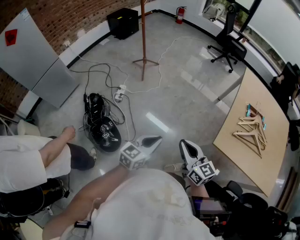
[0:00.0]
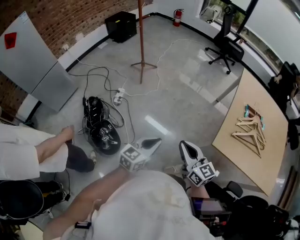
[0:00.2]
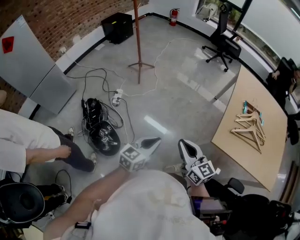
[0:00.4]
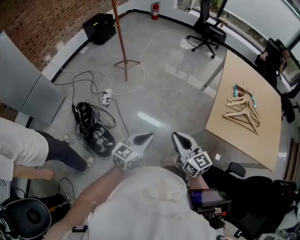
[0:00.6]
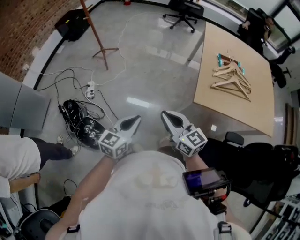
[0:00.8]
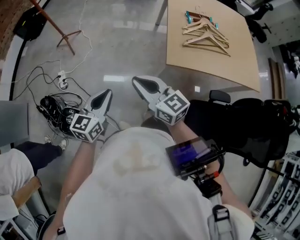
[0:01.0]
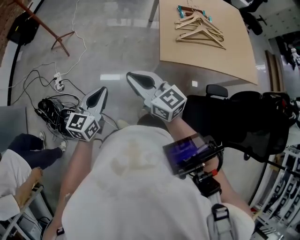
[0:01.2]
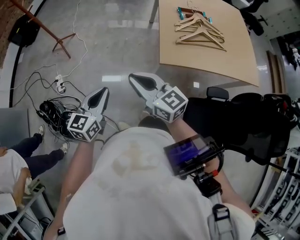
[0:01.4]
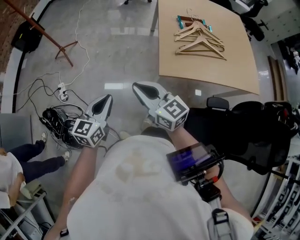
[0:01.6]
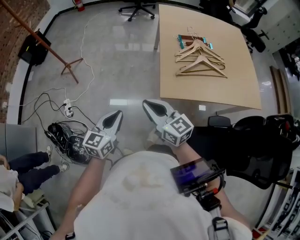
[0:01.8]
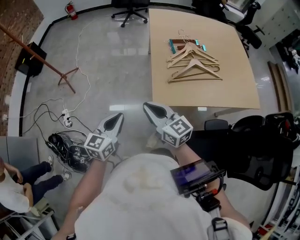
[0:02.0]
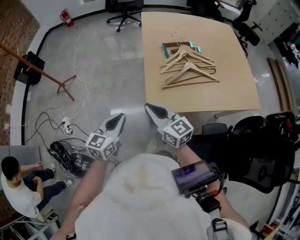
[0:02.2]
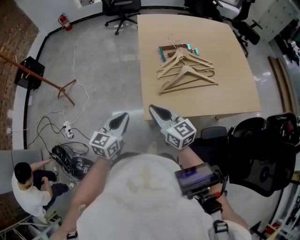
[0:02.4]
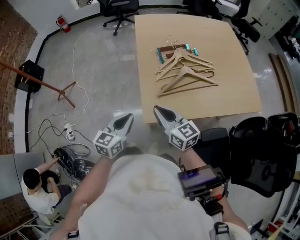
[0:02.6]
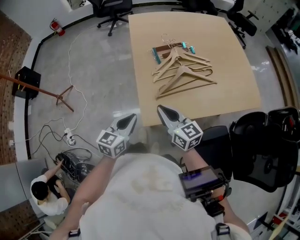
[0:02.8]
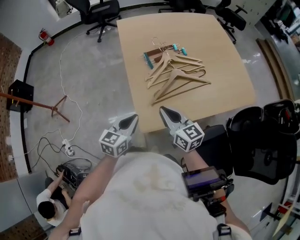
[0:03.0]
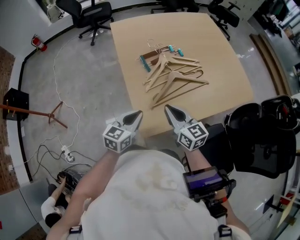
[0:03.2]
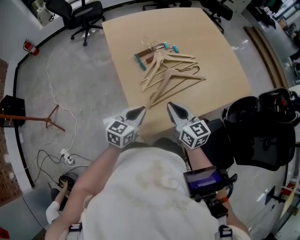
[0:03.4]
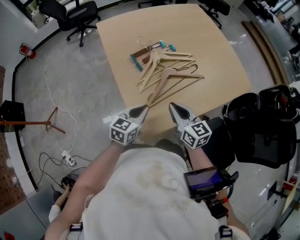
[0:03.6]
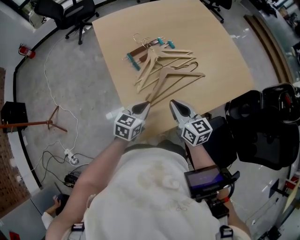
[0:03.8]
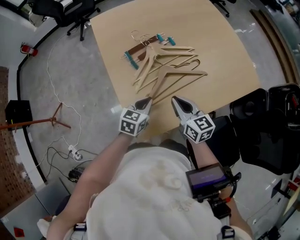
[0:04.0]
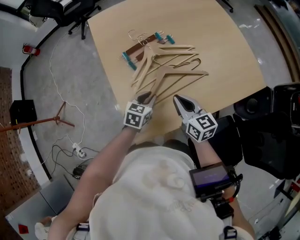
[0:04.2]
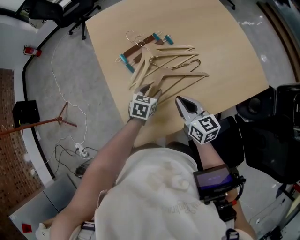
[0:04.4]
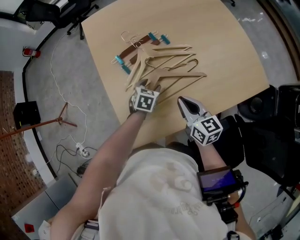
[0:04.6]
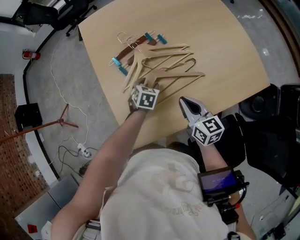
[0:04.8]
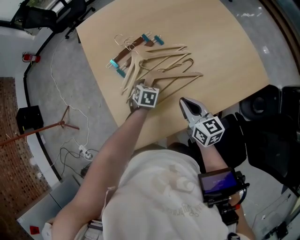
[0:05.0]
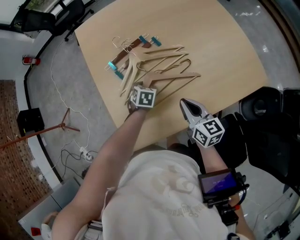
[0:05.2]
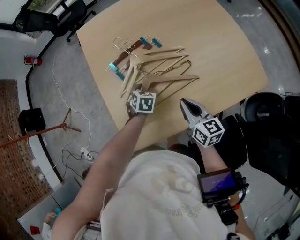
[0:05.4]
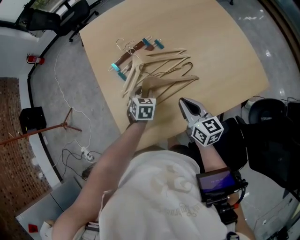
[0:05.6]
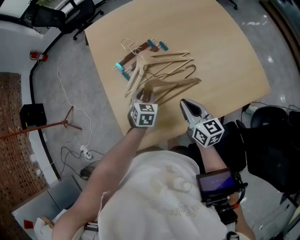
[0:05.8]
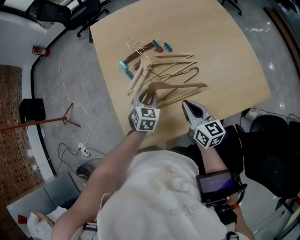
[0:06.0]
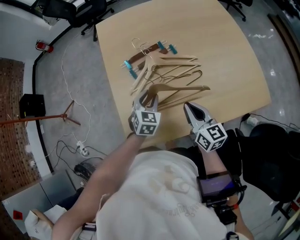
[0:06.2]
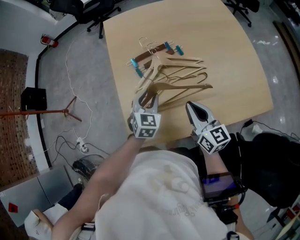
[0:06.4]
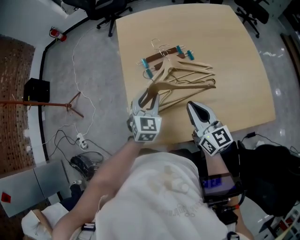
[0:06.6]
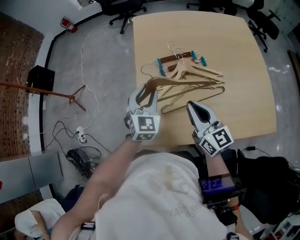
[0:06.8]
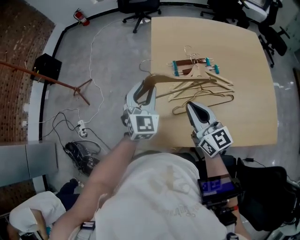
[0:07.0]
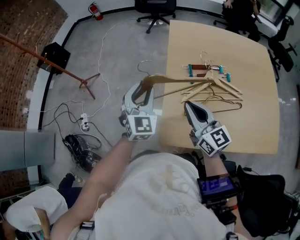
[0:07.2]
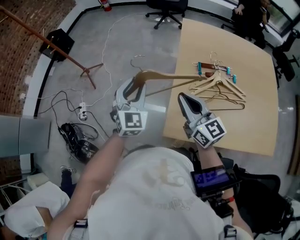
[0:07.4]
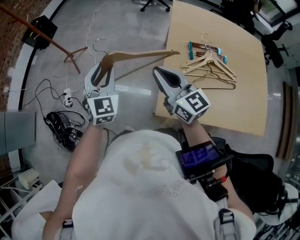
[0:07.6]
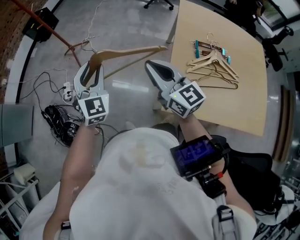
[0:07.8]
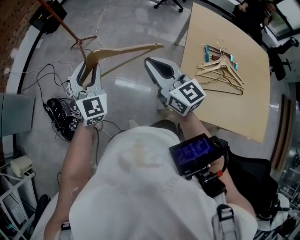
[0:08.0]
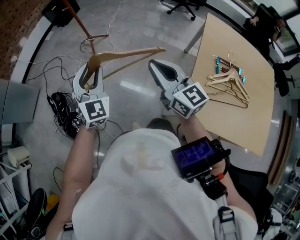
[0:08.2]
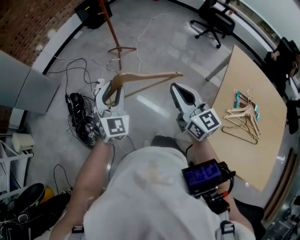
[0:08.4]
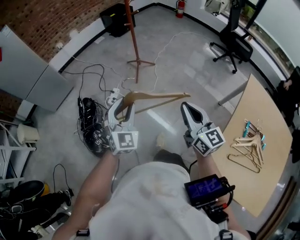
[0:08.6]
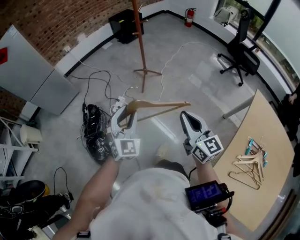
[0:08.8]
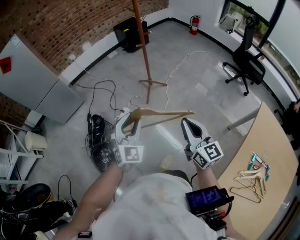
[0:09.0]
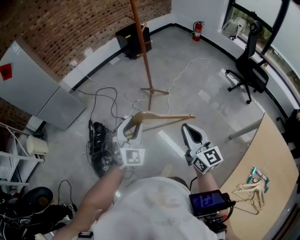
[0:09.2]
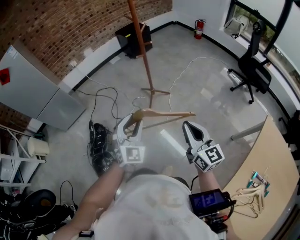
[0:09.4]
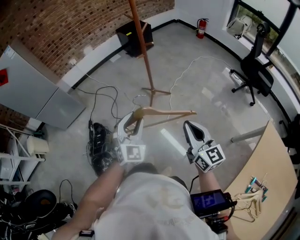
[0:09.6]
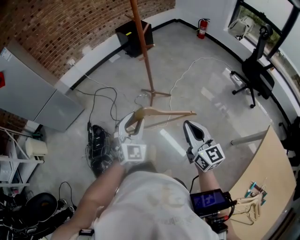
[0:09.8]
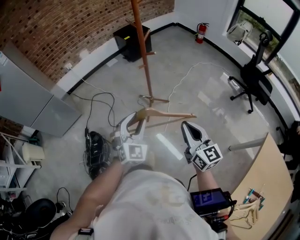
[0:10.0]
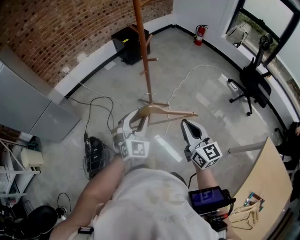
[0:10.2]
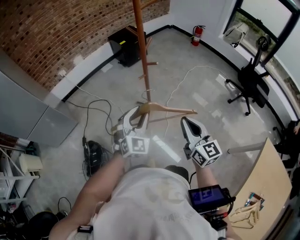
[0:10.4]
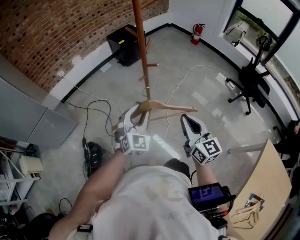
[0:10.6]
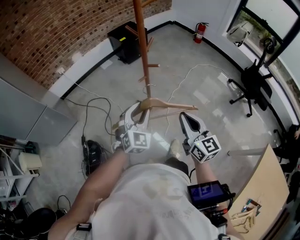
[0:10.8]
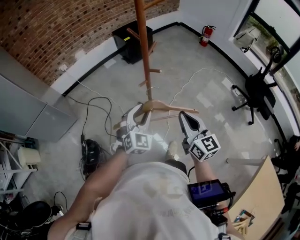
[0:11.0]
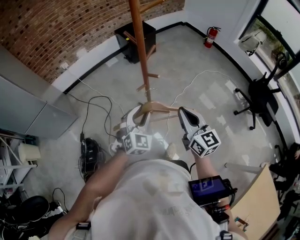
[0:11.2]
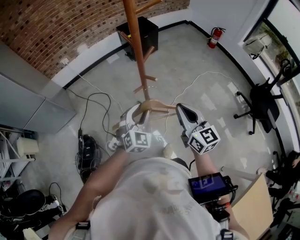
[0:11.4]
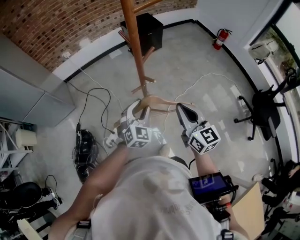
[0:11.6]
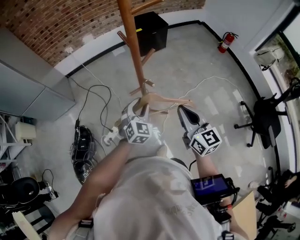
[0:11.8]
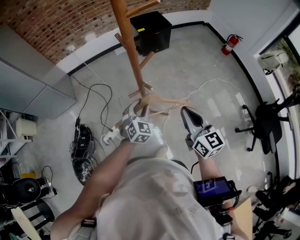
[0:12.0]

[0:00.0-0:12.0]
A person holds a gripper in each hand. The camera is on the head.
0:00.0 to 0:01.6: The two grippers go approximately 10 cm to the right.
0:01.6 to 0:03.0: The left gripper shifts by approximately 35 cm, and swivels some 20 degrees; the right gripper moves roughly 35 cm, and turns by approximately 30 degrees.
0:03.0 to 0:04.4: The right gripper shifts approximately 20 cm to the right, forward and downward; the left gripper goes approximately 30 cm forward, to the right and downward, turns by some 30 degrees, and opens.
0:04.4 to 0:06.0: The right gripper travels to the right by roughly 5 cm. The left gripper swivels some 20 degrees.
0:06.0 to 0:07.6: Both grippers are carried some 50 cm. The left gripper tilts its fingers about 30 degrees upward, while the right gripper changes its angle by about 50 degrees.
0:07.6 to 0:09.0: The left gripper moves roughly 35 cm, and turns by some 30 degrees; the right gripper shifts by approximately 35 cm, and swivels about 20 degrees.
0:09.0 to 0:10.4: Both grippers travel together forward, some 35 cm.
0:10.4 to 0:12.0: The left gripper goes some 30 cm forward, downward and to the right, and rotates about 30 degrees; the right gripper moves forward and to the right, about 30 cm, and rotates some 20 degrees.

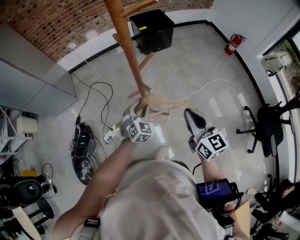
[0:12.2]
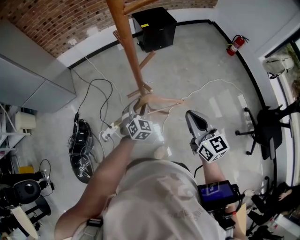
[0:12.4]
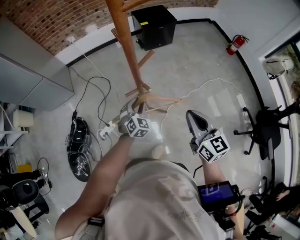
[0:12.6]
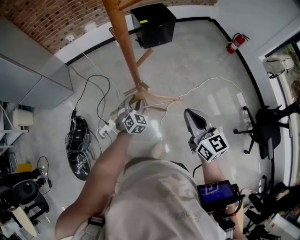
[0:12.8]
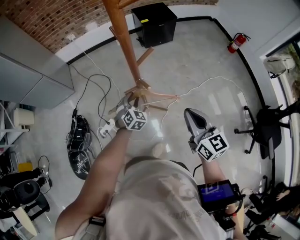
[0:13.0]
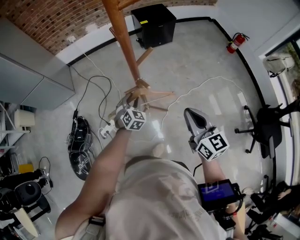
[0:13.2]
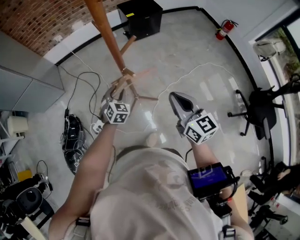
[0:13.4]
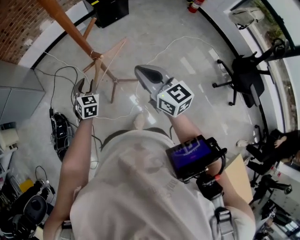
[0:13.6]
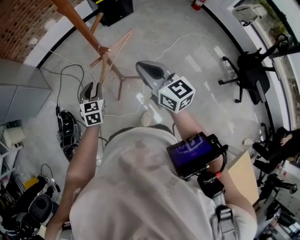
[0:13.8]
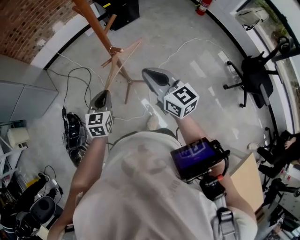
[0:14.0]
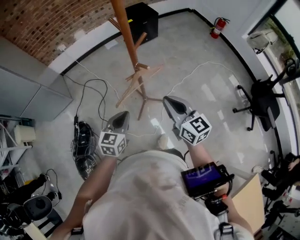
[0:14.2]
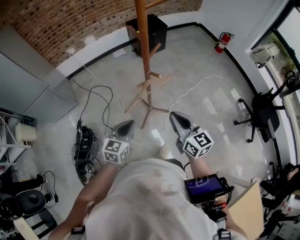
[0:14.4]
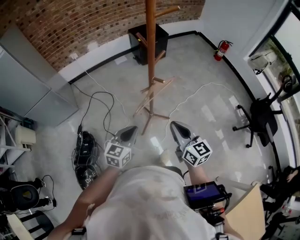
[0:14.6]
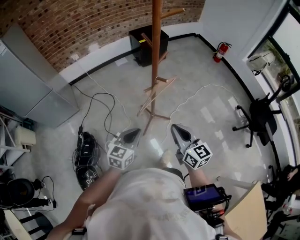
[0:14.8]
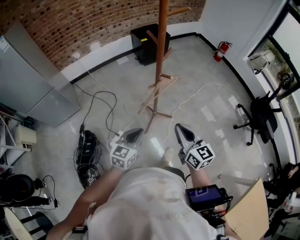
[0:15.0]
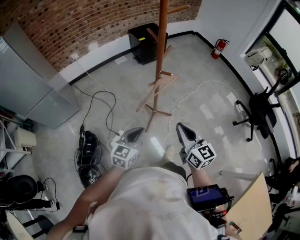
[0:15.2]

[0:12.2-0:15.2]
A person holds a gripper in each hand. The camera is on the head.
0:12.2 to 0:13.8: The left gripper goes some 10 cm to the left, and changes its angle by approximately 20 degrees. The right gripper moves approximately 5 cm.
0:13.8 to 0:15.2: The left gripper is displaced backward and upward by roughly 20 cm, swivels about 30 degrees, and closes. The right gripper travels backward and to the left by about 20 cm.

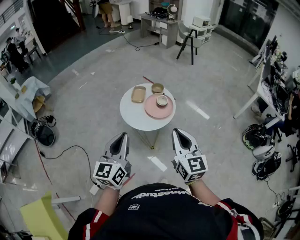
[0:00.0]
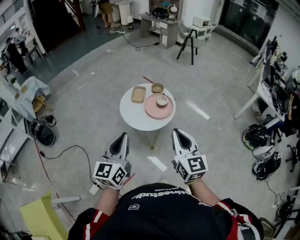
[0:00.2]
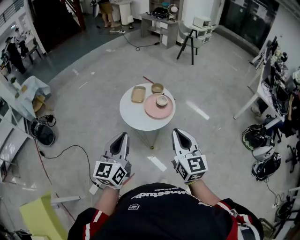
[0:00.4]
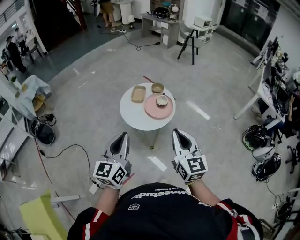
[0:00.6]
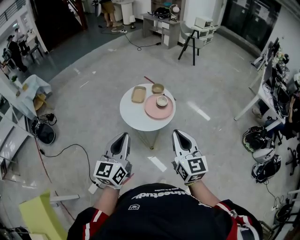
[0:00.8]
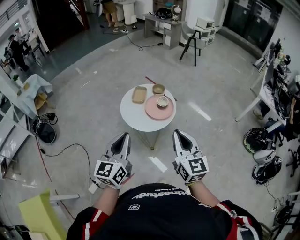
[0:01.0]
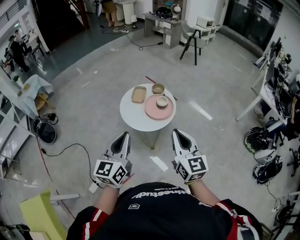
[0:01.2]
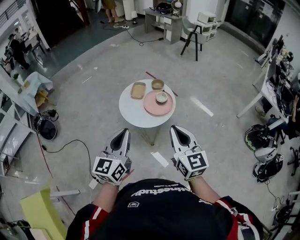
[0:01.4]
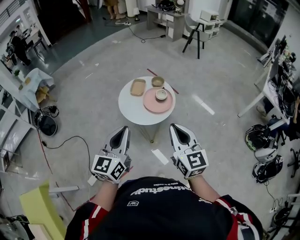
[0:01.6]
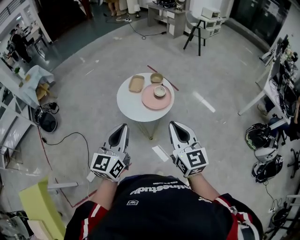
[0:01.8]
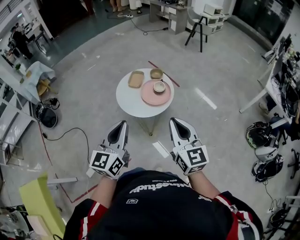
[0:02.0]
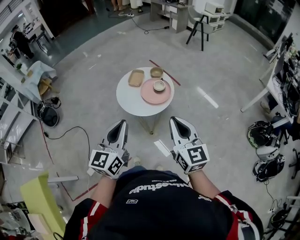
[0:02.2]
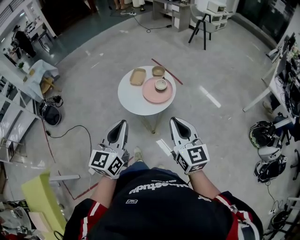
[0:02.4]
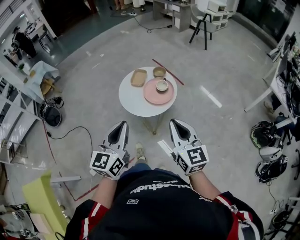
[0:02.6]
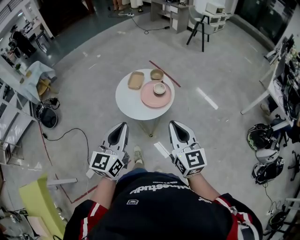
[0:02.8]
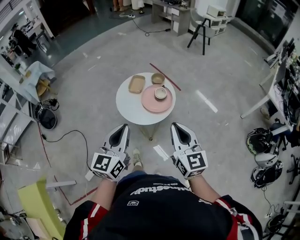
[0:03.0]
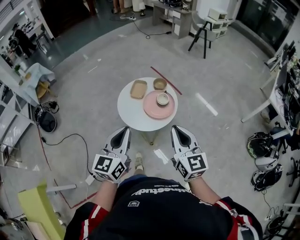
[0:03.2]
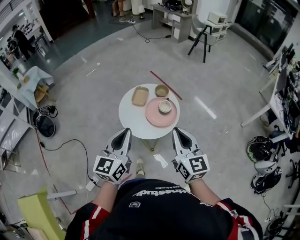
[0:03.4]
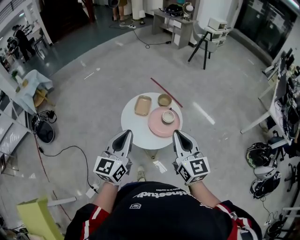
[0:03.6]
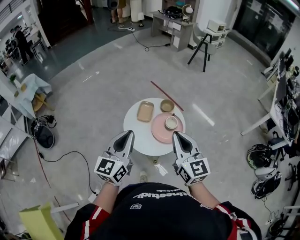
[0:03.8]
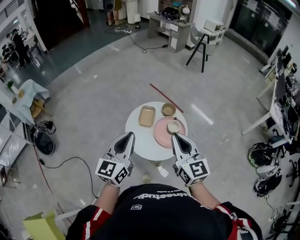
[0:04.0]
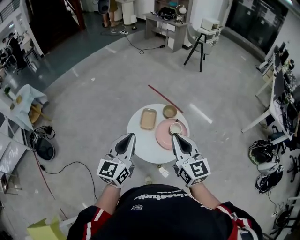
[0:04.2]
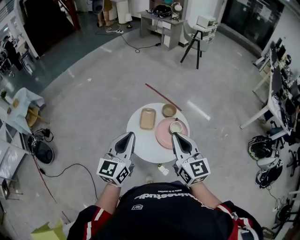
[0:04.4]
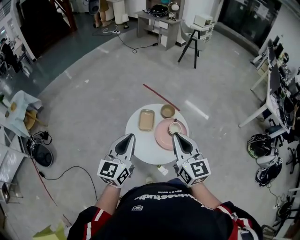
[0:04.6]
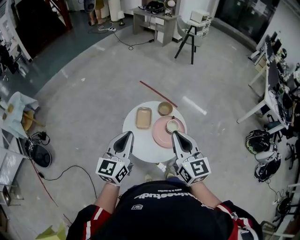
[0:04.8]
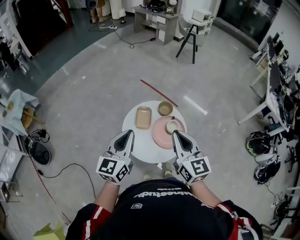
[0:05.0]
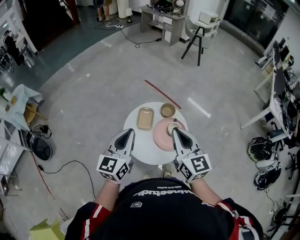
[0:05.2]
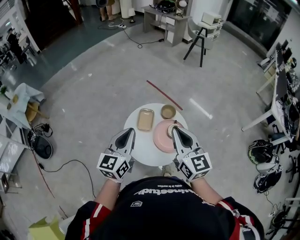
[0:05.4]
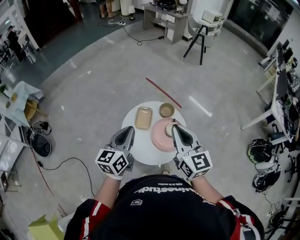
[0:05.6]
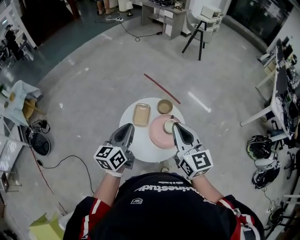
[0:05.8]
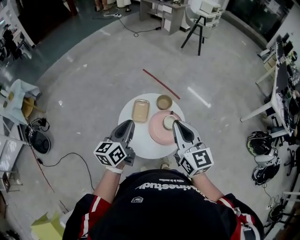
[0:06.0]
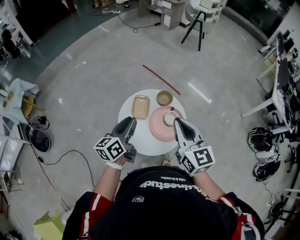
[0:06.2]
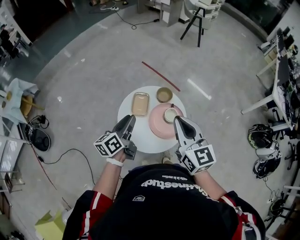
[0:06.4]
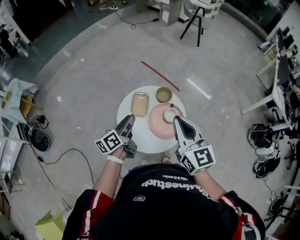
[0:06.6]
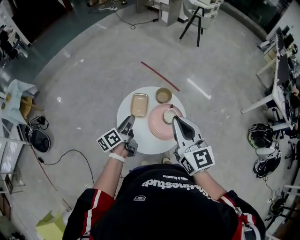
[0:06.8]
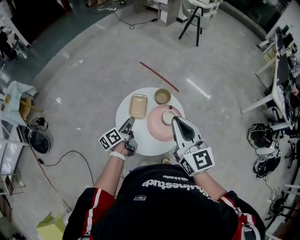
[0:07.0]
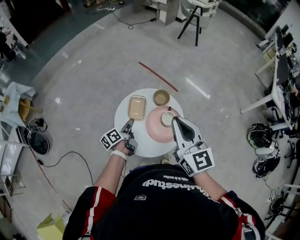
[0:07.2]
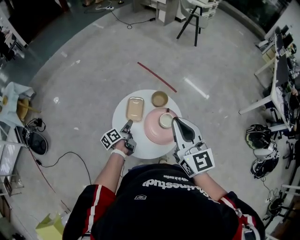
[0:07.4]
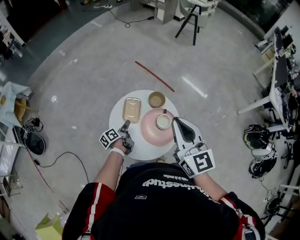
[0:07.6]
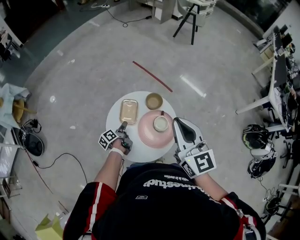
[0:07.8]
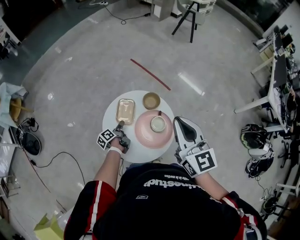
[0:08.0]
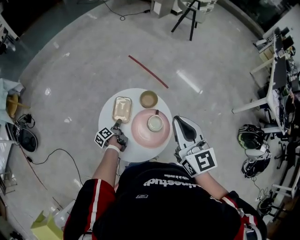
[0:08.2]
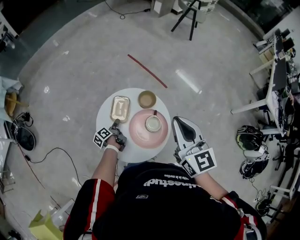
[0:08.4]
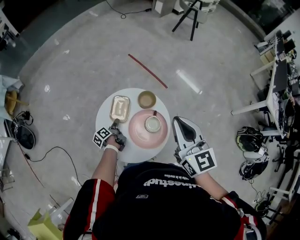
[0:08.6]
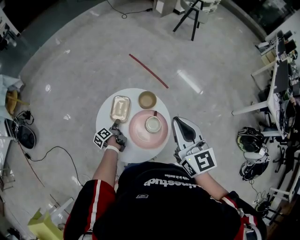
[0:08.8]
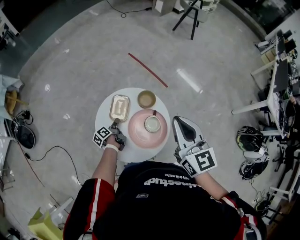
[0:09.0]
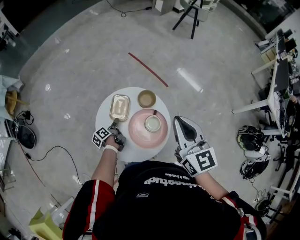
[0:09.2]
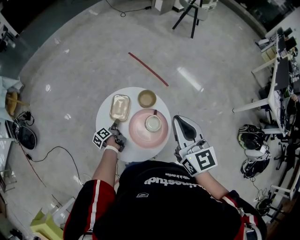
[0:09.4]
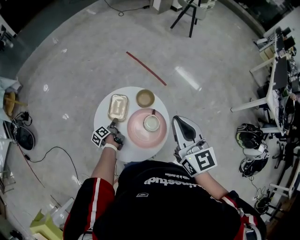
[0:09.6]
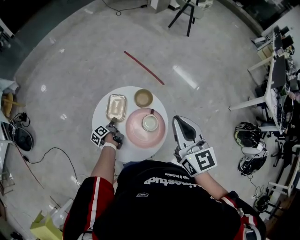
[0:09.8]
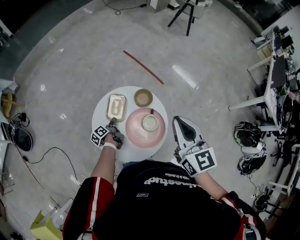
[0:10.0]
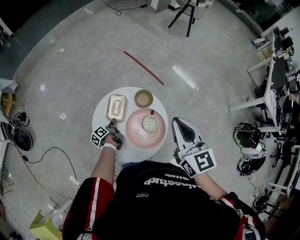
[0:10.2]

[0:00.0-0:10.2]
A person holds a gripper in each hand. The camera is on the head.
0:00.0 to 0:01.4: The left gripper moves to the right, roughly 5 cm.
0:01.4 to 0:03.0: The right gripper moves forward and to the right, roughly 10 cm. Meanwhile the left gripper travels to the right and forward by about 10 cm.
0:03.0 to 0:04.4: The two grippers go some 35 cm forward and to the left.
0:04.4 to 0:05.8: The left gripper shifts approximately 15 cm forward and downward, and changes its angle by roughly 20 degrees, while the right gripper heads forward and to the right, covering roughly 10 cm.
0:05.8 to 0:07.2: The left gripper heads downward, covering some 20 cm, twists roughly 40 degrees counterclockwise, seen from behind, and opens.
0:07.2 to 0:08.8: The left gripper is displaced downward and forward by some 20 cm, and swivels roughly 20 degrees, while the right gripper is displaced forward and to the right by approximately 15 cm.
0:08.8 to 0:10.2: The grippers move only a little.
